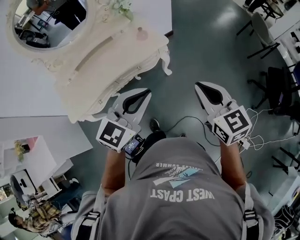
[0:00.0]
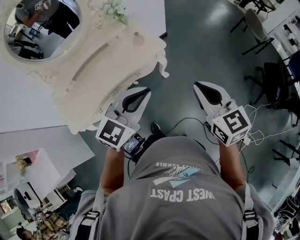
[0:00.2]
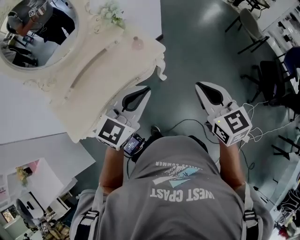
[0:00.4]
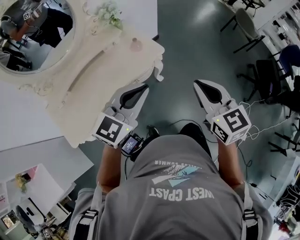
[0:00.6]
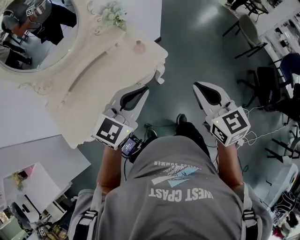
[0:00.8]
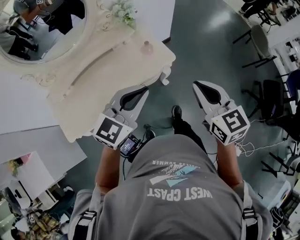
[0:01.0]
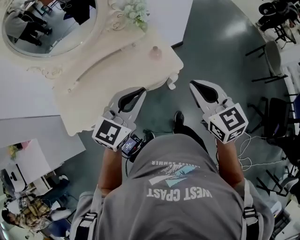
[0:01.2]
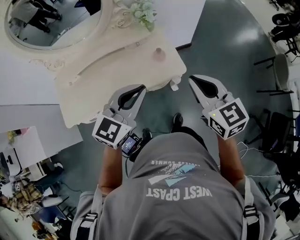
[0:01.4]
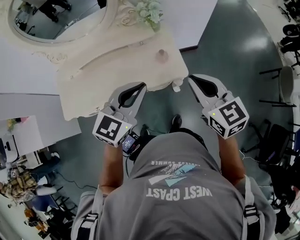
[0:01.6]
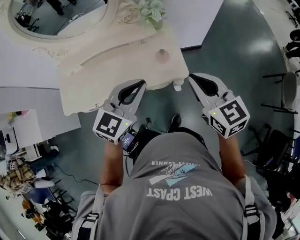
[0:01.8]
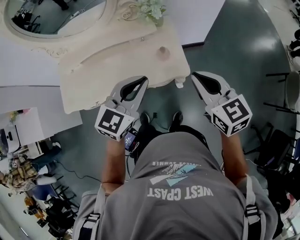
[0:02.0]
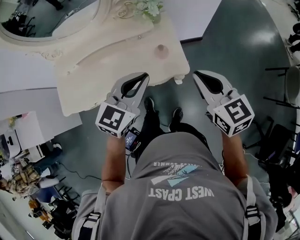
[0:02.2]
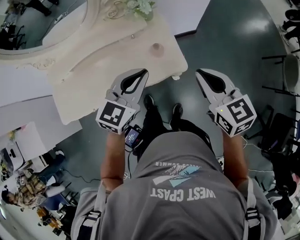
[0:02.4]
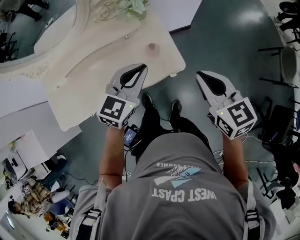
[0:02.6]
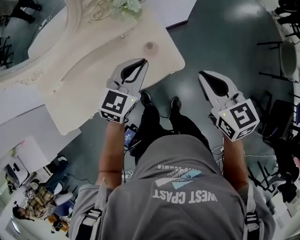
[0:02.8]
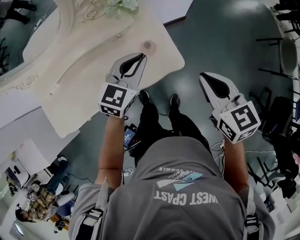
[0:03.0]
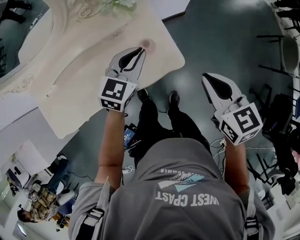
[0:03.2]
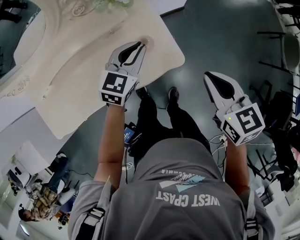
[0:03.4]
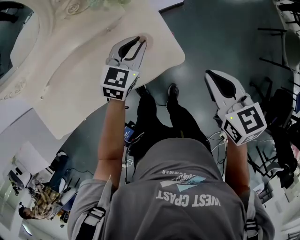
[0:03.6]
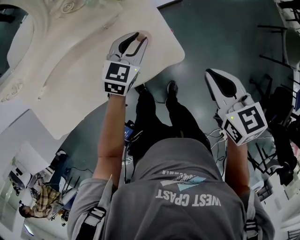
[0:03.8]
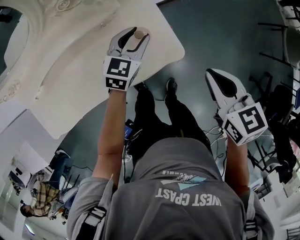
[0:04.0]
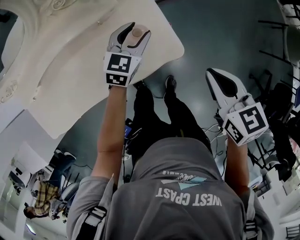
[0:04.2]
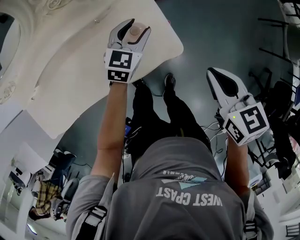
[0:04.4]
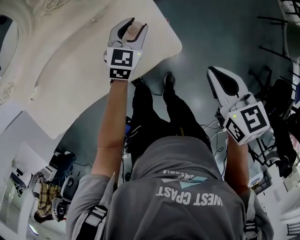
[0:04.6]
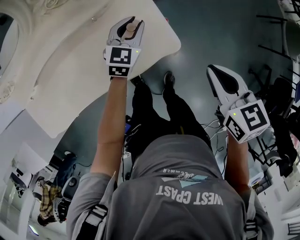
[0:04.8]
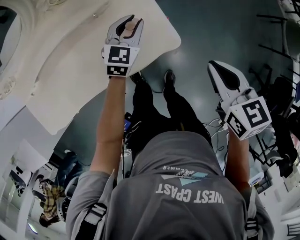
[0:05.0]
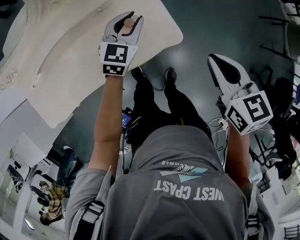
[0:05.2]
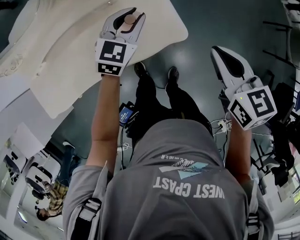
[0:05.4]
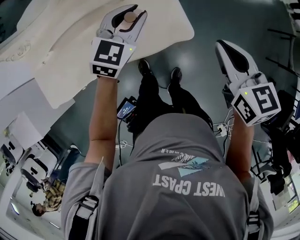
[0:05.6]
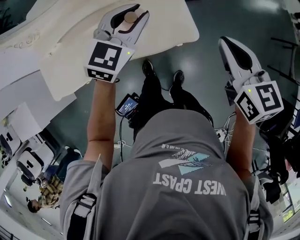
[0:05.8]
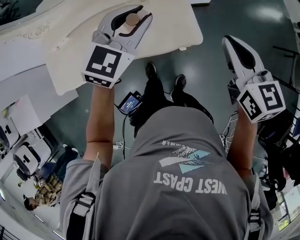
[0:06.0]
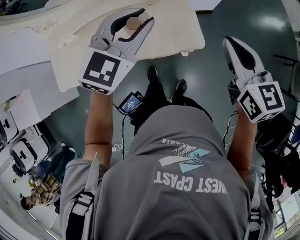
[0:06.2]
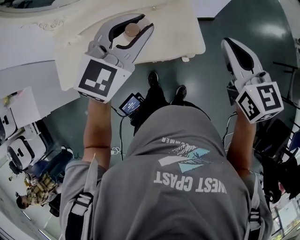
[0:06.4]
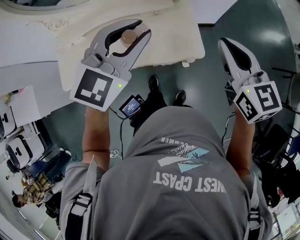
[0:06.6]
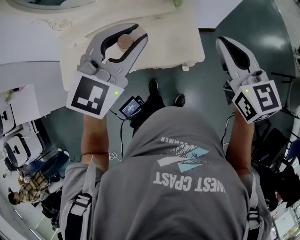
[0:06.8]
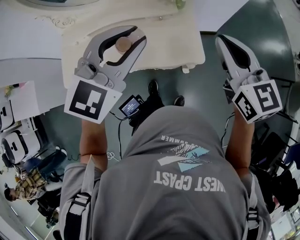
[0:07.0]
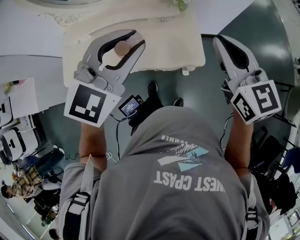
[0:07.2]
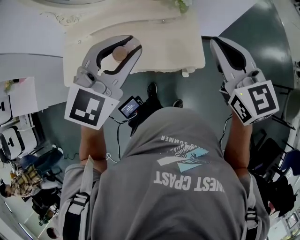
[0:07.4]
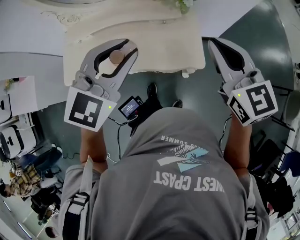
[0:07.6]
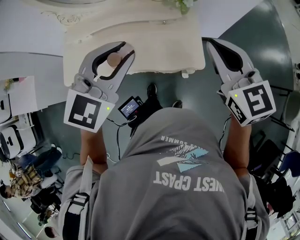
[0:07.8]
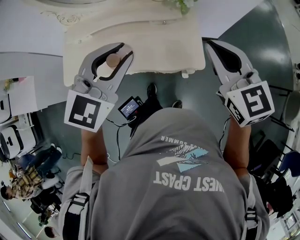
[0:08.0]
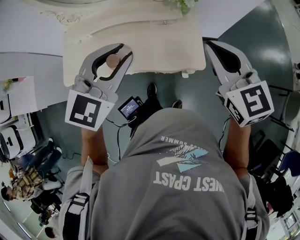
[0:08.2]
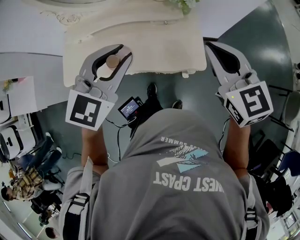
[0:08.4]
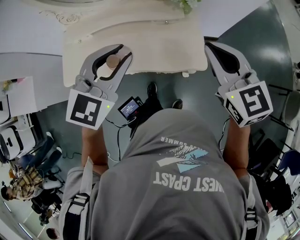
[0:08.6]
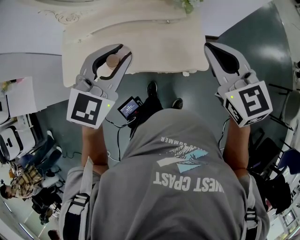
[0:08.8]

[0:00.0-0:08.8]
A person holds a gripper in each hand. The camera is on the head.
0:00.0 to 0:01.4: The left gripper changes place by roughly 25 cm, while the right gripper moves roughly 30 cm.
0:01.4 to 0:03.0: The left gripper goes roughly 25 cm forward and downward; the right gripper is displaced downward, forward and to the right by roughly 15 cm.
0:03.0 to 0:04.4: The left gripper is displaced downward and forward by approximately 15 cm, and opens up; the right gripper is displaced downward by about 10 cm.
0:04.4 to 0:05.8: The right gripper shifts approximately 10 cm upward; the left gripper shifts about 20 cm upward, and closes.
0:05.8 to 0:07.4: The right gripper shifts about 15 cm upward and to the left, and swivels about 30 degrees; the left gripper travels upward and backward by about 25 cm.
0:07.4 to 0:08.8: The left gripper moves to the left, about 5 cm. The right gripper shifts by approximately 5 cm.

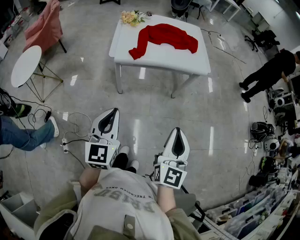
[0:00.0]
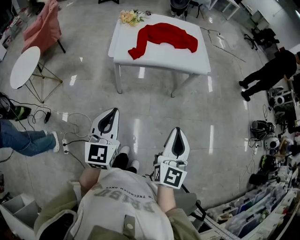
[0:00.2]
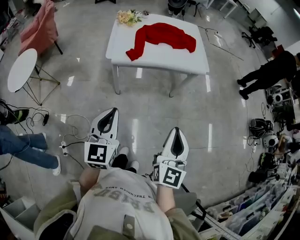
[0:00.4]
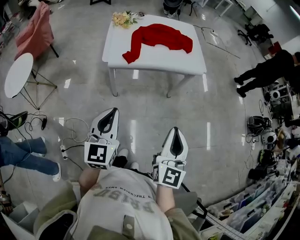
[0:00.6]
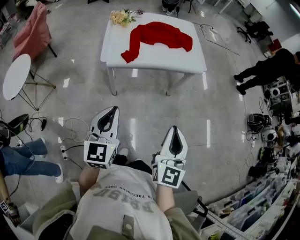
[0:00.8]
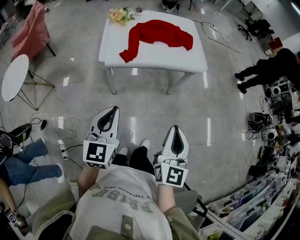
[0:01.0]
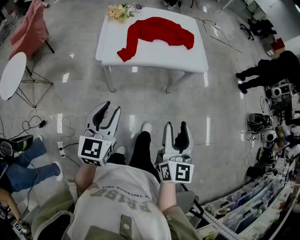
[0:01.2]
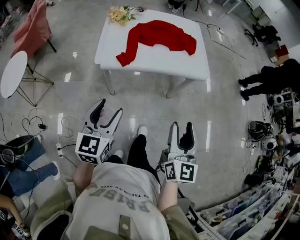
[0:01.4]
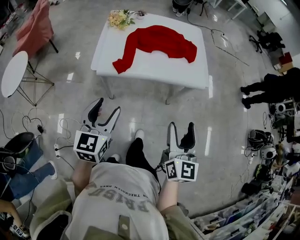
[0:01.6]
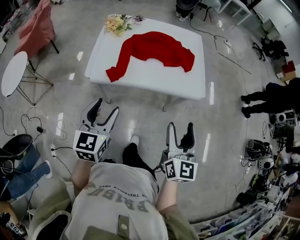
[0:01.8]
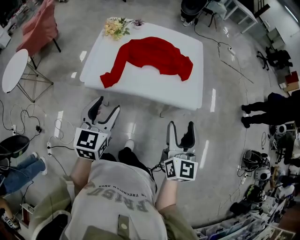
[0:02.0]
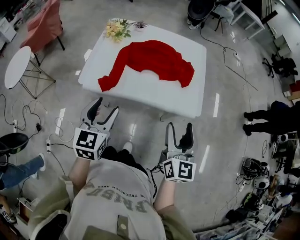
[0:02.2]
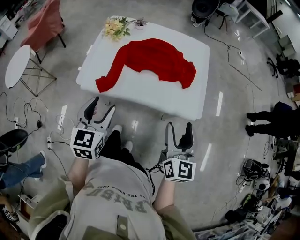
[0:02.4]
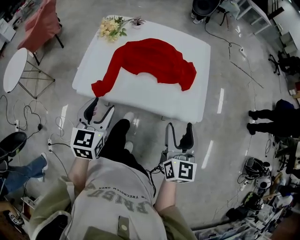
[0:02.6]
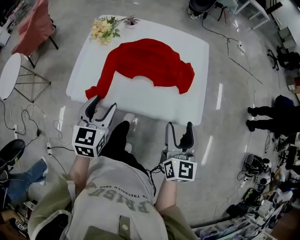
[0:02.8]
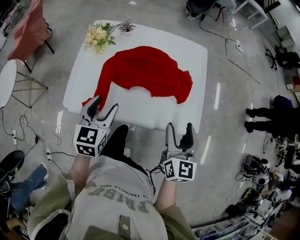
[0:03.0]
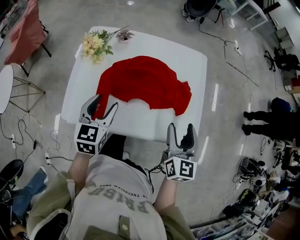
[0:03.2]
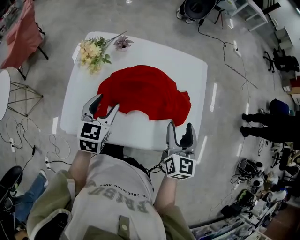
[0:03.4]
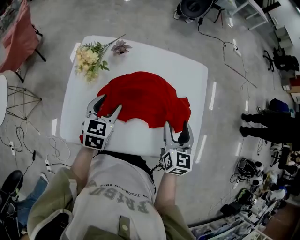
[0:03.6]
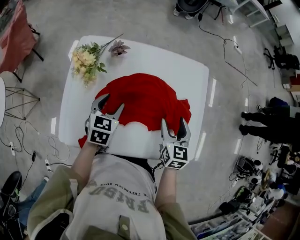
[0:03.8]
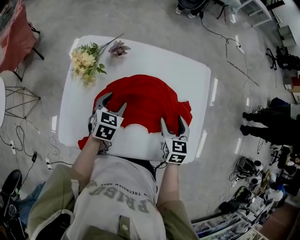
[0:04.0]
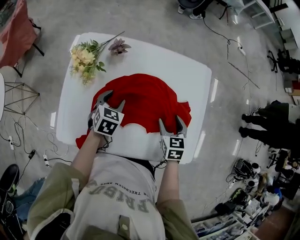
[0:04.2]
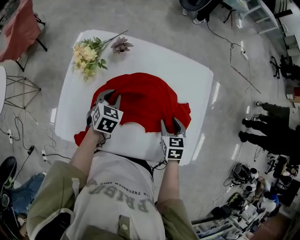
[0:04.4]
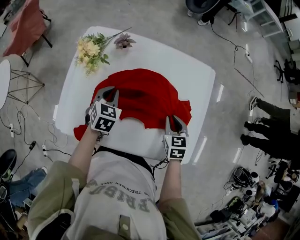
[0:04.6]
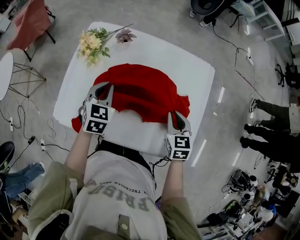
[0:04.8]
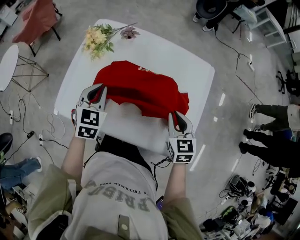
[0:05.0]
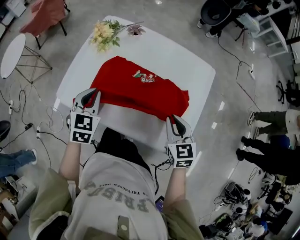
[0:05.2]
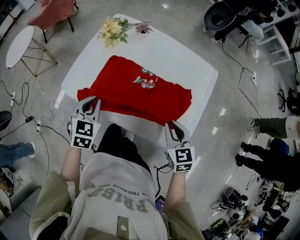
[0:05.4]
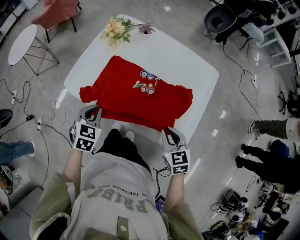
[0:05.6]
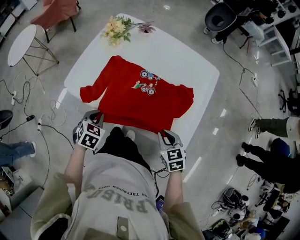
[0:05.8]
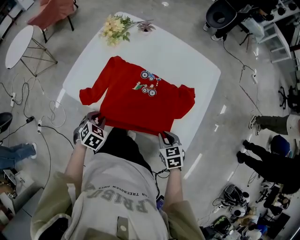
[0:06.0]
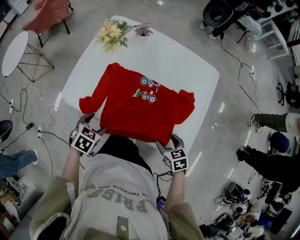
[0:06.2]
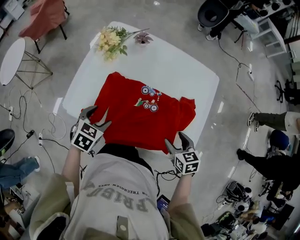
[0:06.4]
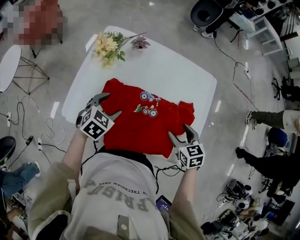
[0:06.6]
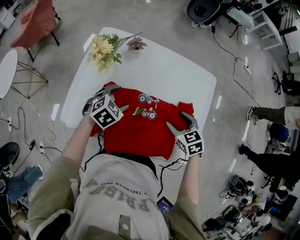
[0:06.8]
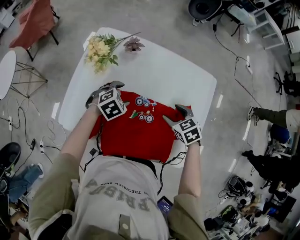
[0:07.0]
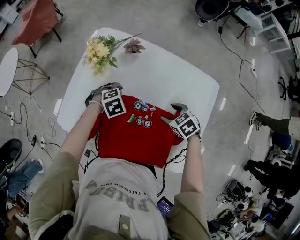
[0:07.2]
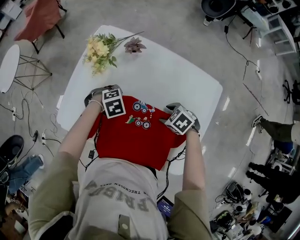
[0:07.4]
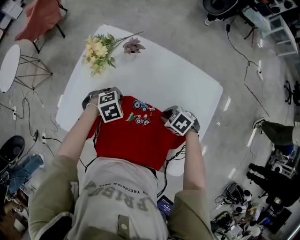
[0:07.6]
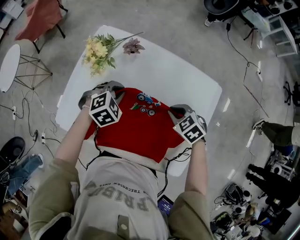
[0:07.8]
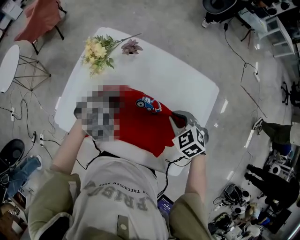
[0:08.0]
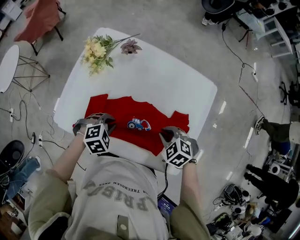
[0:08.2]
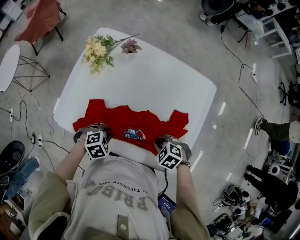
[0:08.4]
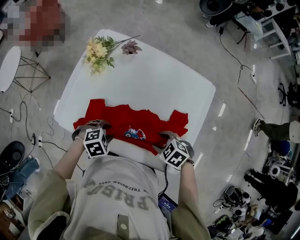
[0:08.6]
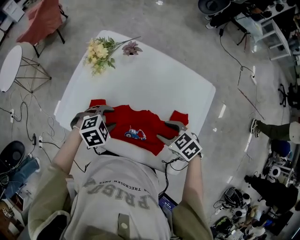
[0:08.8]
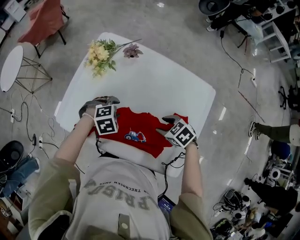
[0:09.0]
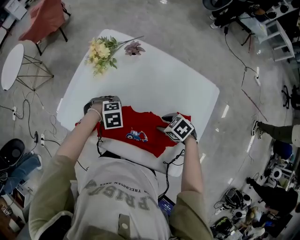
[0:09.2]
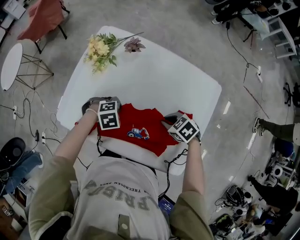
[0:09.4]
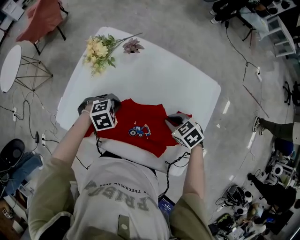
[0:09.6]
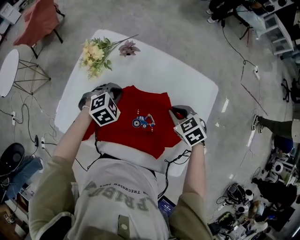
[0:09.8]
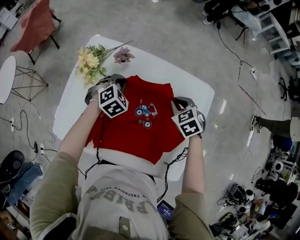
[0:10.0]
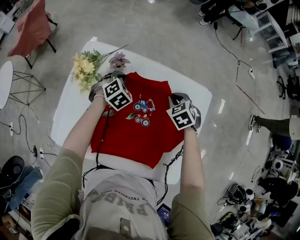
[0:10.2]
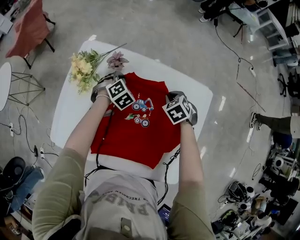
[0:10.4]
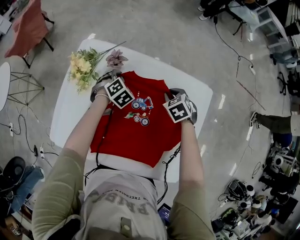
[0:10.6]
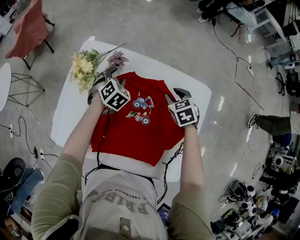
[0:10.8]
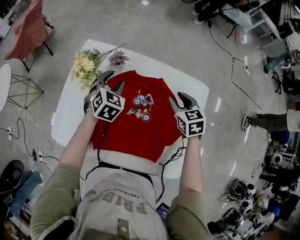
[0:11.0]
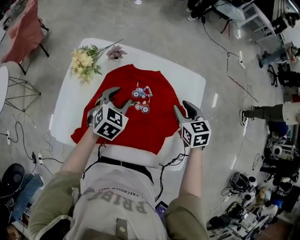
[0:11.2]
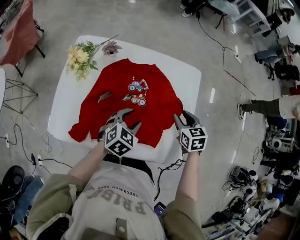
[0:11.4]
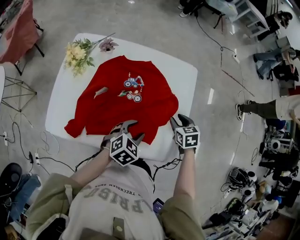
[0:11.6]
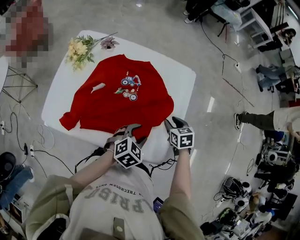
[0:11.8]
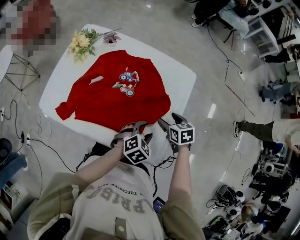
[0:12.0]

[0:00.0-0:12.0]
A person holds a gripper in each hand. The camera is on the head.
0:00.0 to 0:01.6: Both grippers travel together forward, about 20 cm. The right gripper opens. The left gripper opens its fingers.
0:01.6 to 0:03.0: Both grippers travel together forward, some 35 cm.
0:03.0 to 0:04.4: Both grippers move forward and downward, some 30 cm. The right gripper tilts its fingers some 40 degrees downward; the left gripper changes its angle by roughly 20 degrees, and closes up.
0:04.4 to 0:06.0: The left gripper goes upward and returns, approximately 10 cm each way. The right gripper reaches some 10 cm upward, then returns, swivels some 30 degrees, and closes.
0:06.0 to 0:07.6: The left gripper moves some 10 cm upward and comes back, swivels approximately 40 degrees, and opens, then closes again. Meanwhile the right gripper goes upward and returns, some 10 cm each way, rotates some 40 degrees, and opens and closes again.
0:07.6 to 0:09.0: The left gripper goes up and down, roughly 10 cm each way, reversing 2 times, and opens up, while the right gripper swings up and down, some 10 cm each way, with 3 reversals, and opens its fingers.
0:09.0 to 0:10.4: The right gripper goes upward and returns, roughly 5 cm each way, turns by some 30 degrees, and closes its fingers; the left gripper moves up and down over some 5 cm, changing direction 2 times, changes its angle by some 30 degrees, and closes up.
0:10.4 to 0:12.0: The left gripper ends up roughly 40 cm from where it was, changes its angle by some 30 degrees, and opens. The right gripper reaches roughly 10 cm upward, then returns, changes its angle by about 30 degrees, and opens up.

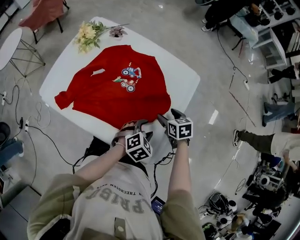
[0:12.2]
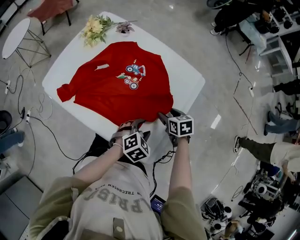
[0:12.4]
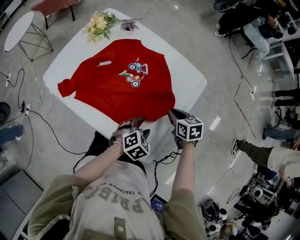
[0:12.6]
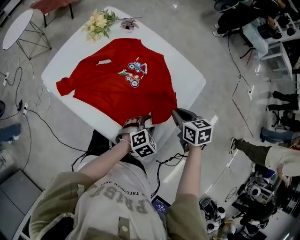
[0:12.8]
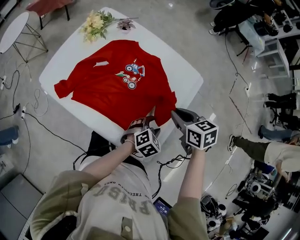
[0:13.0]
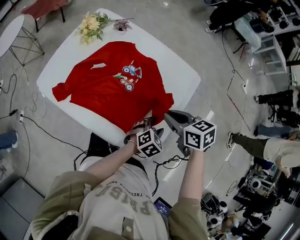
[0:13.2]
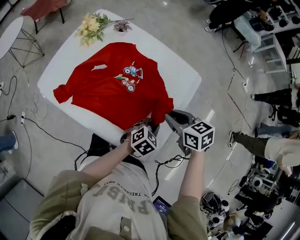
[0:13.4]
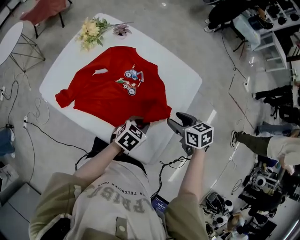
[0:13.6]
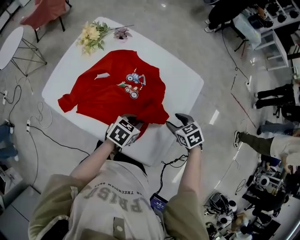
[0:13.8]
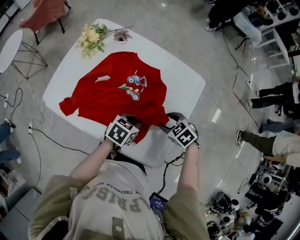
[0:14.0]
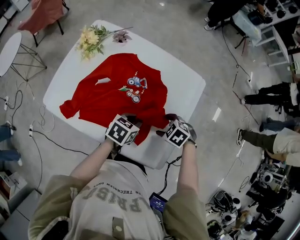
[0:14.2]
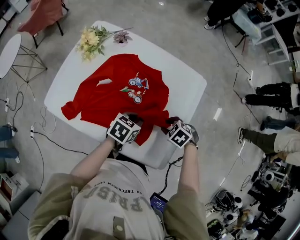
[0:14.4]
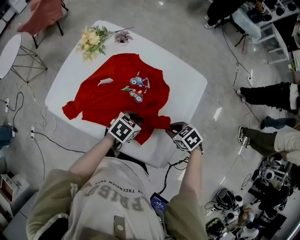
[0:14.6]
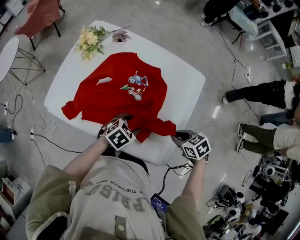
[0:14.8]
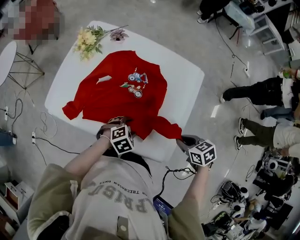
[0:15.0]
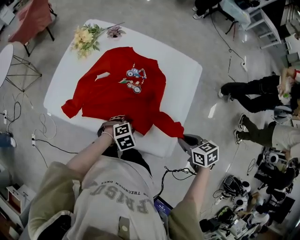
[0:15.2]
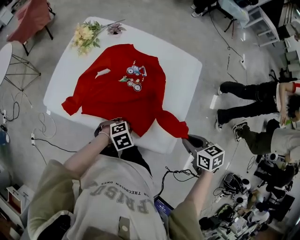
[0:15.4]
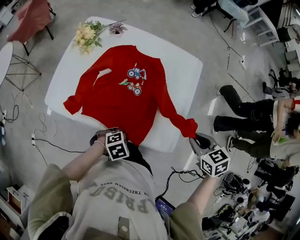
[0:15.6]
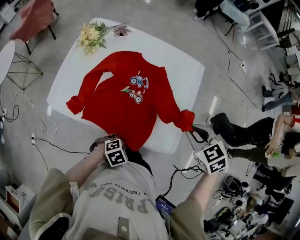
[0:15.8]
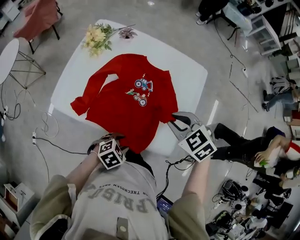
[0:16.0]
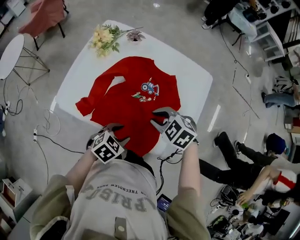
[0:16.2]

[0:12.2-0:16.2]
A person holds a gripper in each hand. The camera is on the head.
0:12.2 to 0:13.6: The left gripper turns by approximately 30 degrees, and closes its fingers. Meanwhile the right gripper goes about 10 cm upward, and closes, then opens again.
0:13.6 to 0:14.8: The left gripper shifts by some 10 cm, rotates some 20 degrees, and opens; the right gripper ends up approximately 10 cm from where it was, and closes its fingers.
0:14.8 to 0:16.2: The left gripper moves about 15 cm, and closes, then reopens; the right gripper ends up roughly 25 cm from where it was, and turns by approximately 40 degrees.
